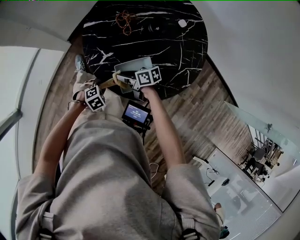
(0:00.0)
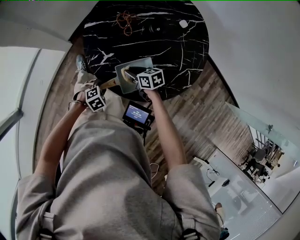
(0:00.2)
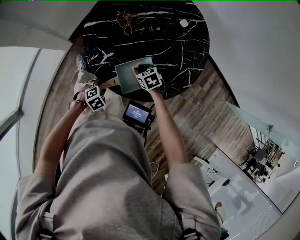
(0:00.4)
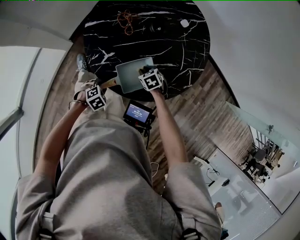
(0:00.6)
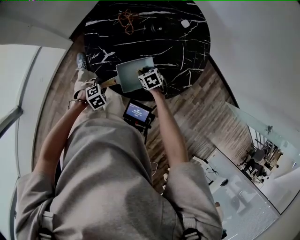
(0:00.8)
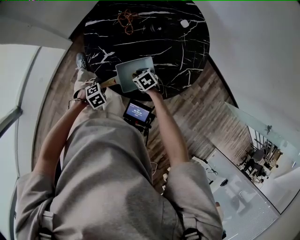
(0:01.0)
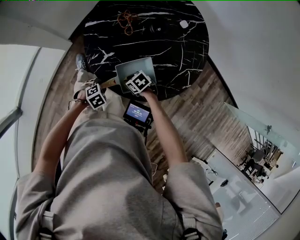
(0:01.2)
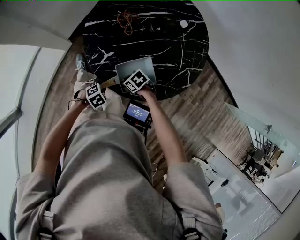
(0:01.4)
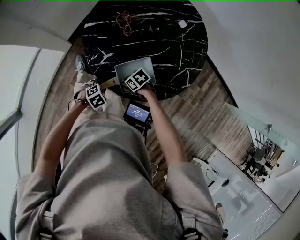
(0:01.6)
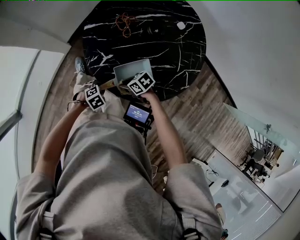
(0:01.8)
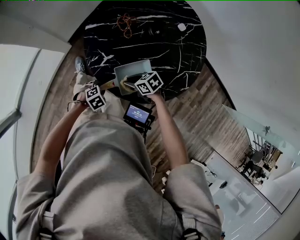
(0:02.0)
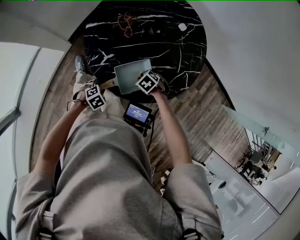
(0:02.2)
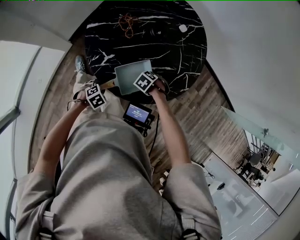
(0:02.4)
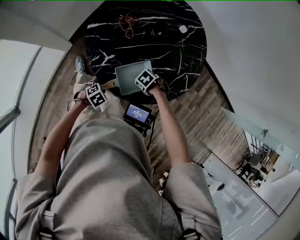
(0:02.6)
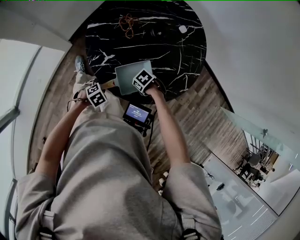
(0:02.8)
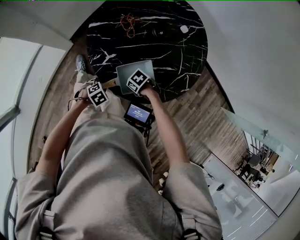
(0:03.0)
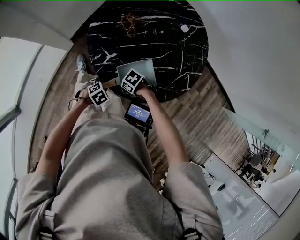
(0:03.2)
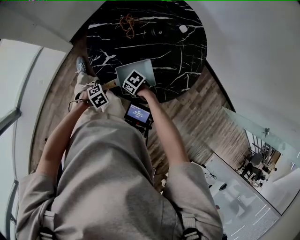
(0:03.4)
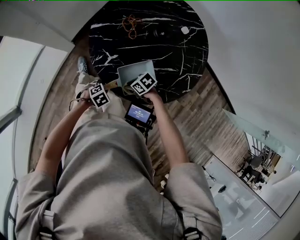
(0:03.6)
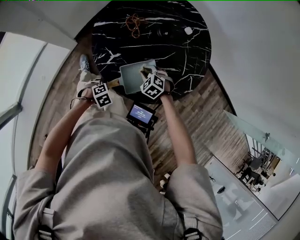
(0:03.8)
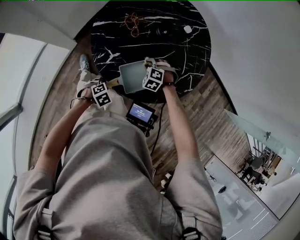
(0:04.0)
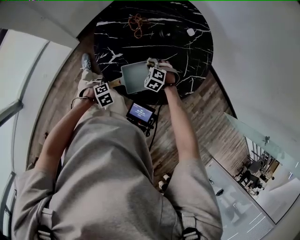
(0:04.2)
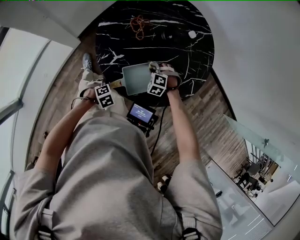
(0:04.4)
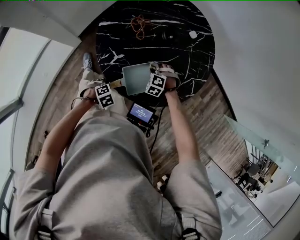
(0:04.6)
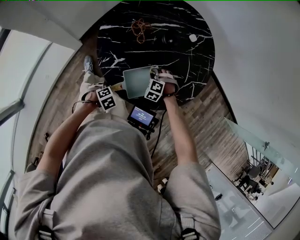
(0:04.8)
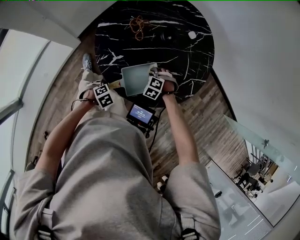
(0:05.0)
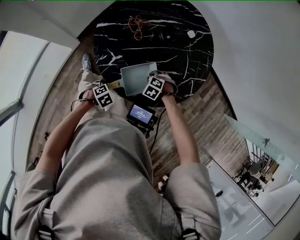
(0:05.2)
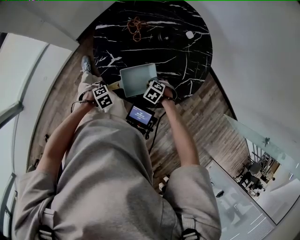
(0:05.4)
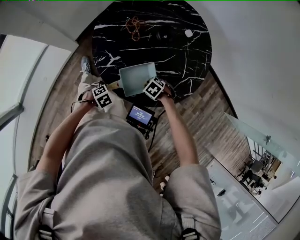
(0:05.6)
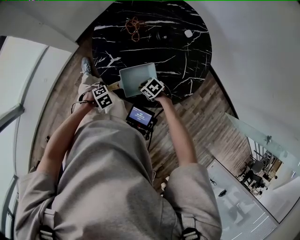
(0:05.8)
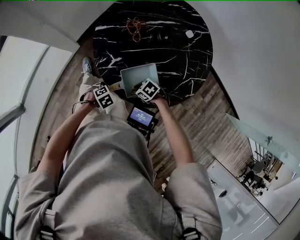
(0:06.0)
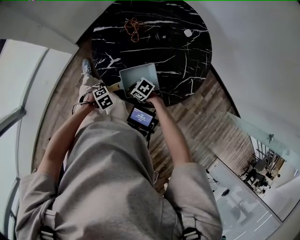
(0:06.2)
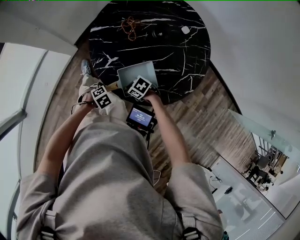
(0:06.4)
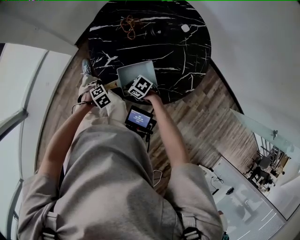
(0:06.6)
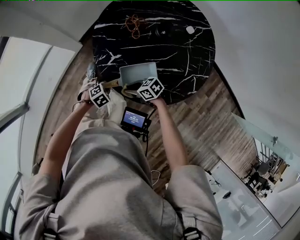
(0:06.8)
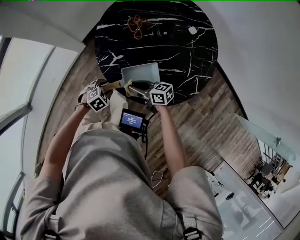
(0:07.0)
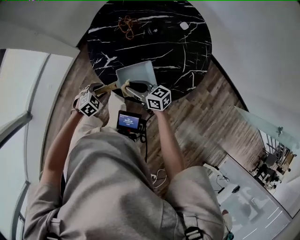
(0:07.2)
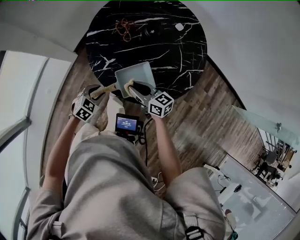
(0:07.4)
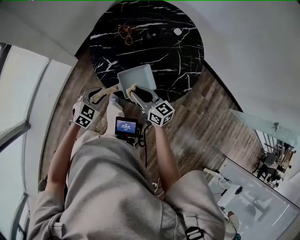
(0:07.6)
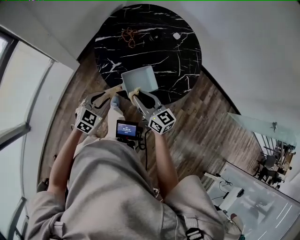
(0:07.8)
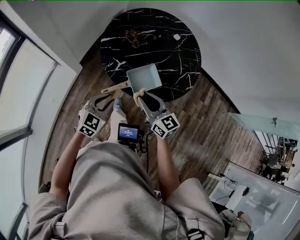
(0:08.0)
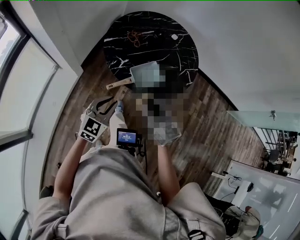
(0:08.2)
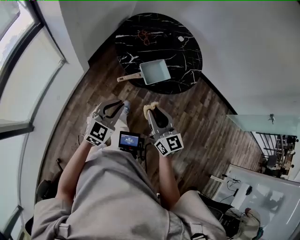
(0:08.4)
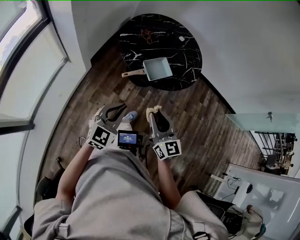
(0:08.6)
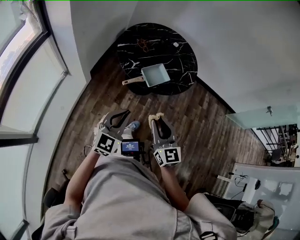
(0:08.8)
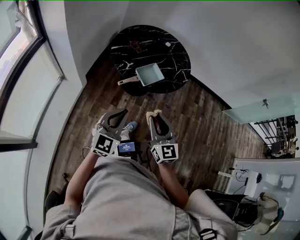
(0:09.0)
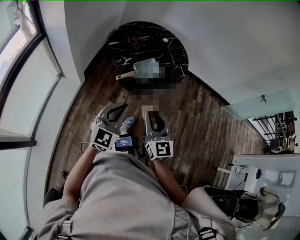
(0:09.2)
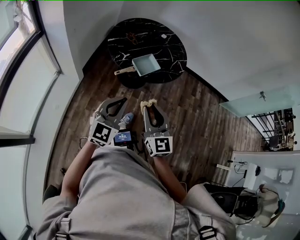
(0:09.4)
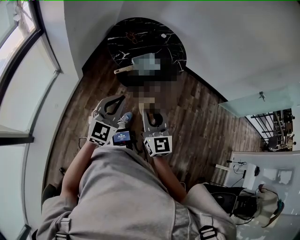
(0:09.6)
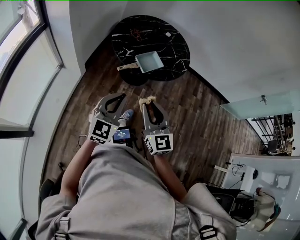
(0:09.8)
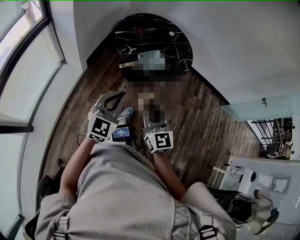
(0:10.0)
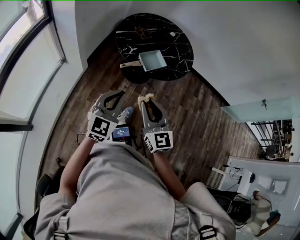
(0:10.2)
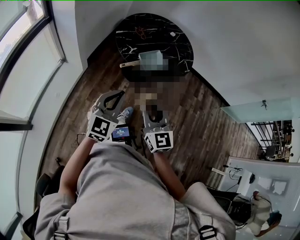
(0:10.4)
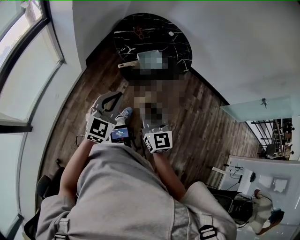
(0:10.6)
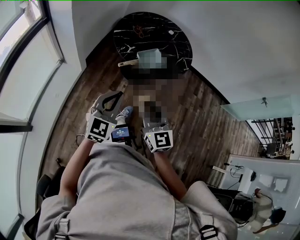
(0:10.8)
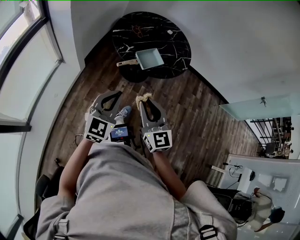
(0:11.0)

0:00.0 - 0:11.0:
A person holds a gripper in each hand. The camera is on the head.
0:00.0 - 0:01.6: The right gripper goes roughly 5 cm downward, and swivels about 40 degrees.
0:03.2 - 0:04.8: The right gripper moves roughly 15 cm, and swivels some 60 degrees.
0:04.8 - 0:06.2: The right gripper shifts by some 15 cm, and turns by about 60 degrees.
0:06.2 - 0:07.8: Both grippers move upward, about 25 cm. The left gripper angles its fingers upward, by some 40 degrees; the right gripper points its fingers roughly 40 degrees further upward.
0:07.8 - 0:09.4: Both grippers travel together backward and upward, about 40 cm. The left gripper tips its fingers upward by about 30 degrees, and closes up; the right gripper swivels approximately 50 degrees.
0:09.4 - 0:11.0: The grippers stay close to where they were, moving slightly.

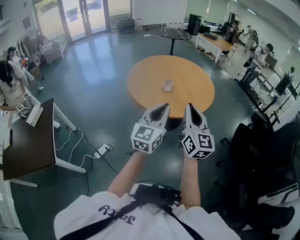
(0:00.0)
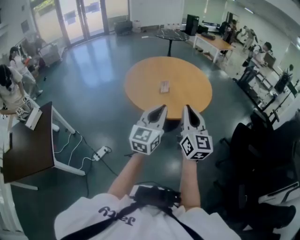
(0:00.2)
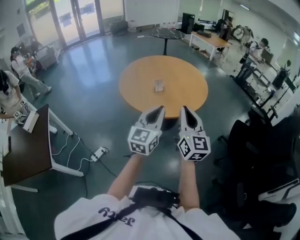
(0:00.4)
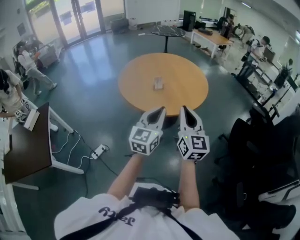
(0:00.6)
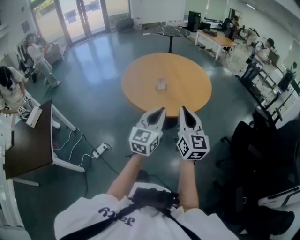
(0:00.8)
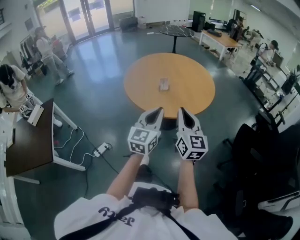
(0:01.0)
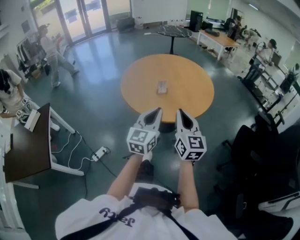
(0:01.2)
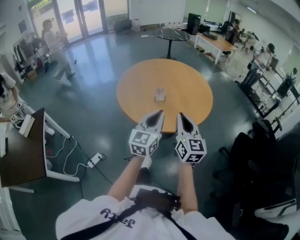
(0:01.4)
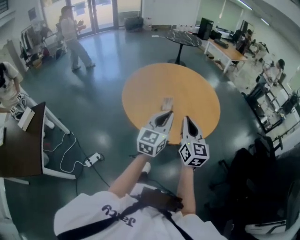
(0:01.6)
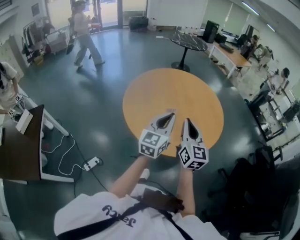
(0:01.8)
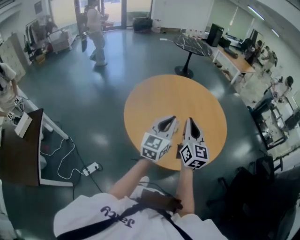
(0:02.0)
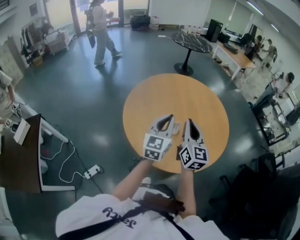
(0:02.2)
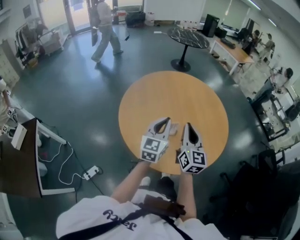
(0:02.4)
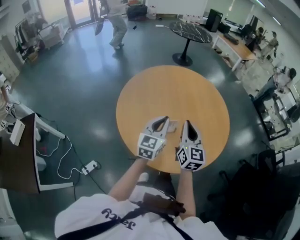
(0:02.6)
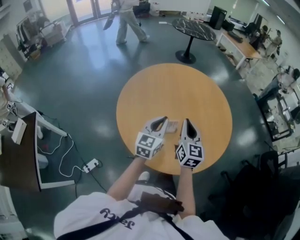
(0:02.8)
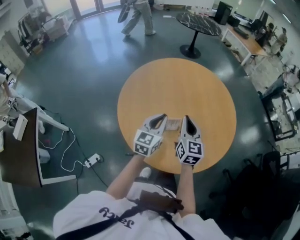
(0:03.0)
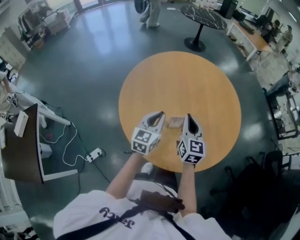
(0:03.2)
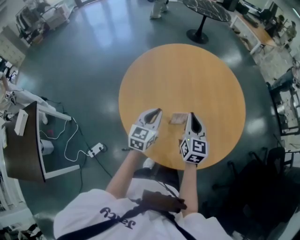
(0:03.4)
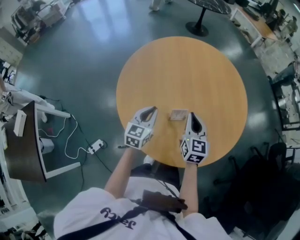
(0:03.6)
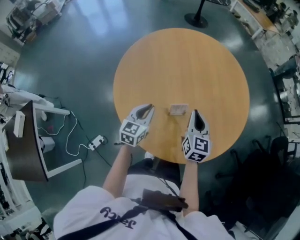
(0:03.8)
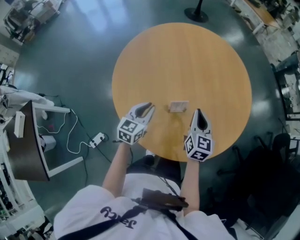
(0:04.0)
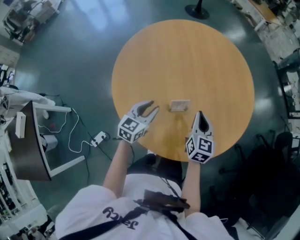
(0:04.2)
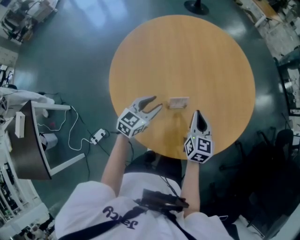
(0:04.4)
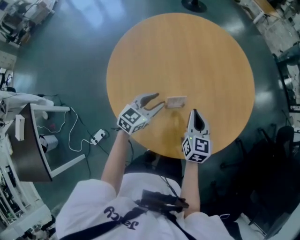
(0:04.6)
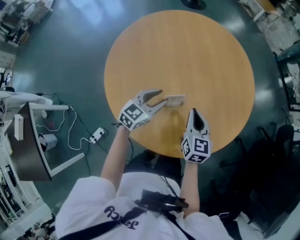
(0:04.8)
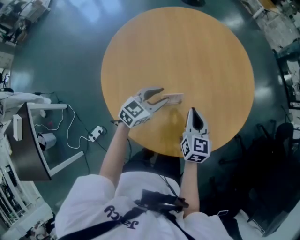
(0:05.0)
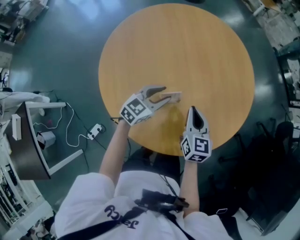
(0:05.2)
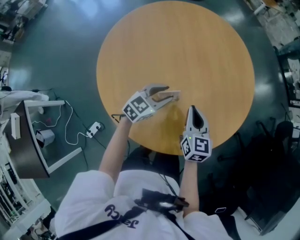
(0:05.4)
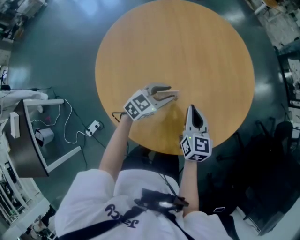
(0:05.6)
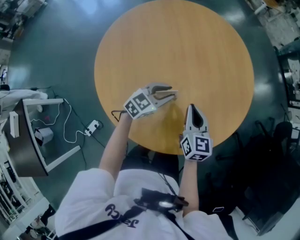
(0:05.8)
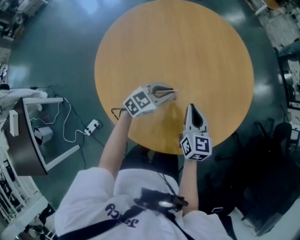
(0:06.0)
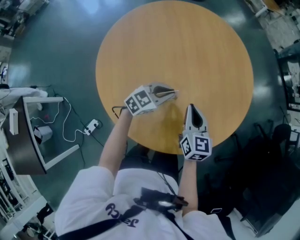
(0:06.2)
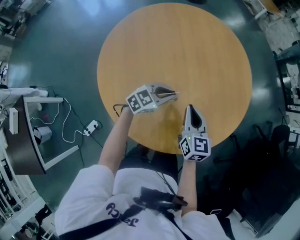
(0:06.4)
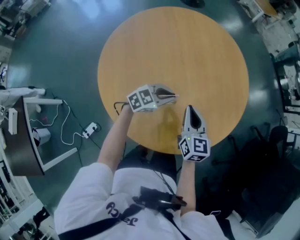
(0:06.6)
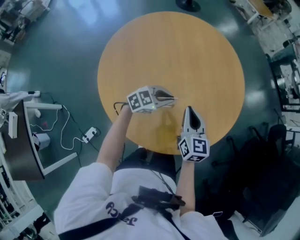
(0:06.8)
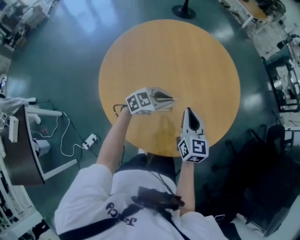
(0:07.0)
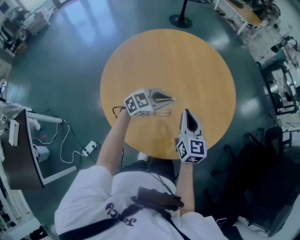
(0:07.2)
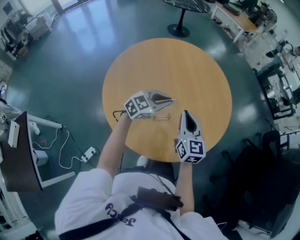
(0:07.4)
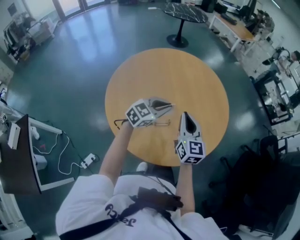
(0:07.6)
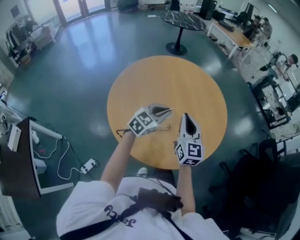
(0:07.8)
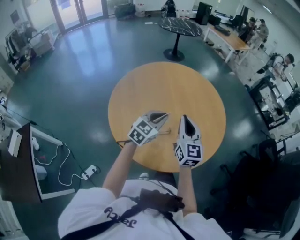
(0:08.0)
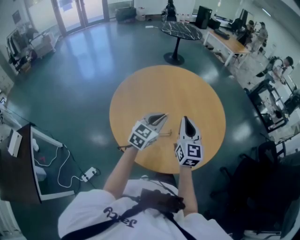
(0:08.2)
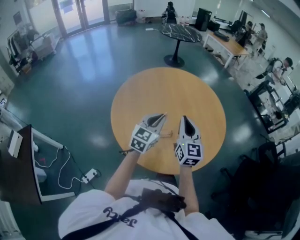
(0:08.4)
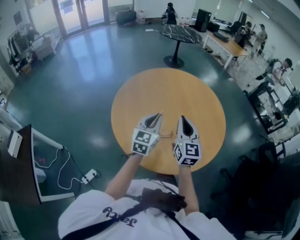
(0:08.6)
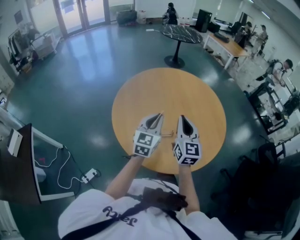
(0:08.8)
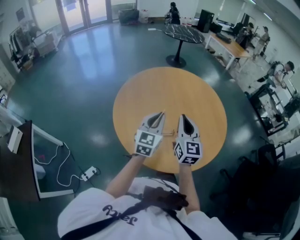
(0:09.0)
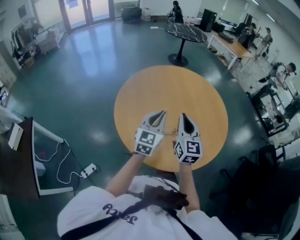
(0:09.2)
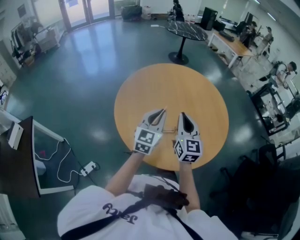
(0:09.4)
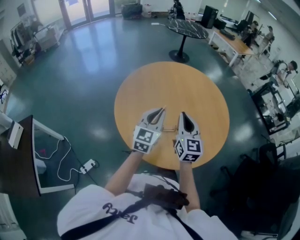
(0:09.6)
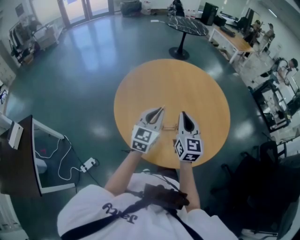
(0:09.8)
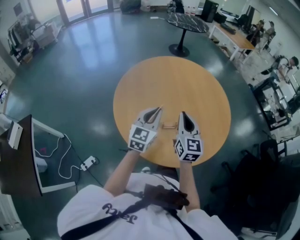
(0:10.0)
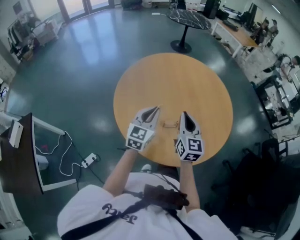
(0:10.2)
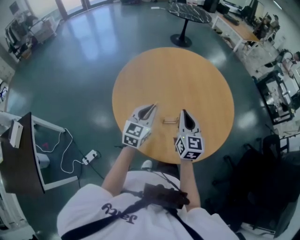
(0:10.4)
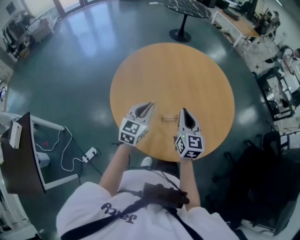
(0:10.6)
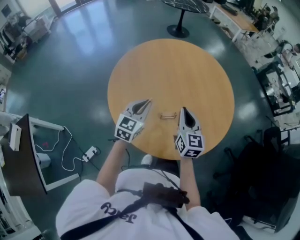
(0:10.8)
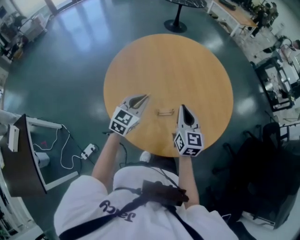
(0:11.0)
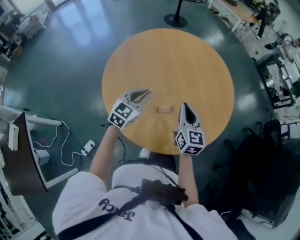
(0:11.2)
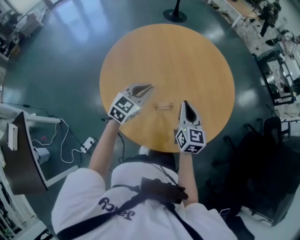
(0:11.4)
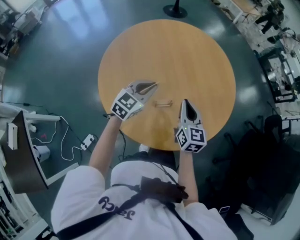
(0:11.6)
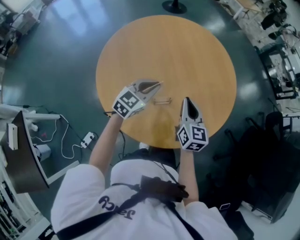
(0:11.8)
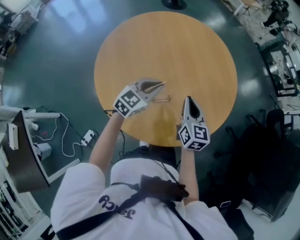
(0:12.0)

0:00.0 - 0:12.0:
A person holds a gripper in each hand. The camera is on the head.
0:00.0 - 0:01.6: The left gripper heads forward, covering some 20 cm, while the right gripper is displaced forward and downward by about 20 cm.
0:01.6 - 0:03.0: The right gripper travels forward by roughly 25 cm. Meanwhile the left gripper heads forward and downward, covering roughly 25 cm.
0:03.0 - 0:04.4: The right gripper is displaced downward and to the right by approximately 15 cm; the left gripper shifts roughly 15 cm downward, rotates approximately 20 degrees, and opens up.
0:04.4 - 0:06.0: The left gripper shifts some 10 cm to the right and forward, swivels roughly 20 degrees, and closes up.
0:06.0 - 0:07.6: Both grippers move upward, approximately 15 cm.
0:07.6 - 0:09.0: The left gripper shifts about 10 cm to the left, upward and backward, and rotates roughly 40 degrees. The right gripper shifts by some 5 cm.
0:09.0 - 0:10.4: The grippers both shift downward by roughly 5 cm.
0:10.4 - 0:12.0: The right gripper heads to the right and downward, covering some 10 cm. Meanwhile the left gripper goes approximately 10 cm to the right and forward, and changes its angle by approximately 30 degrees.

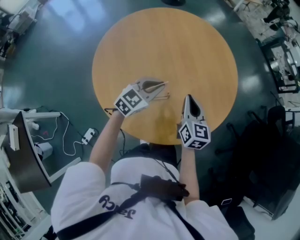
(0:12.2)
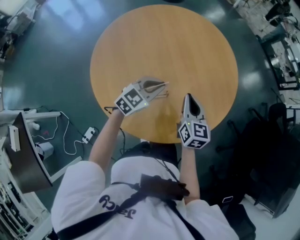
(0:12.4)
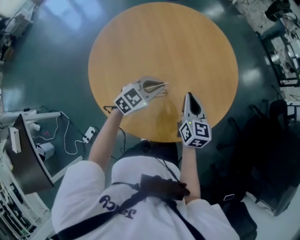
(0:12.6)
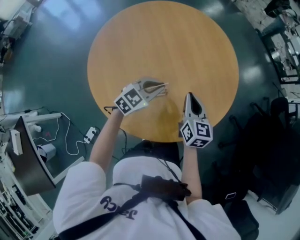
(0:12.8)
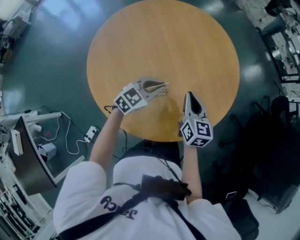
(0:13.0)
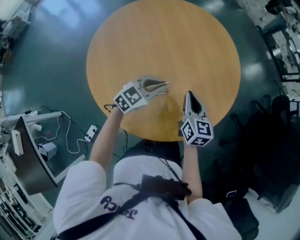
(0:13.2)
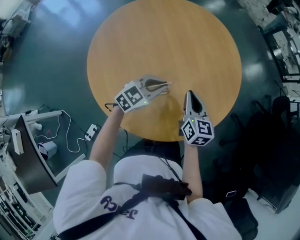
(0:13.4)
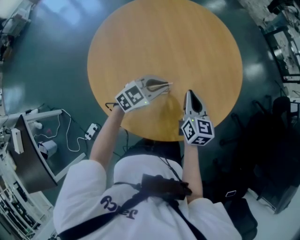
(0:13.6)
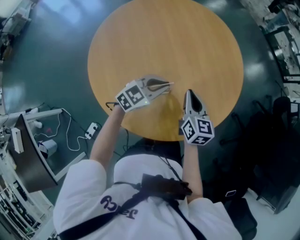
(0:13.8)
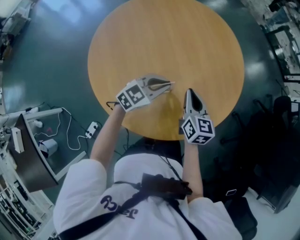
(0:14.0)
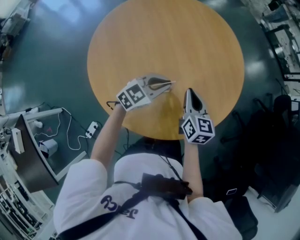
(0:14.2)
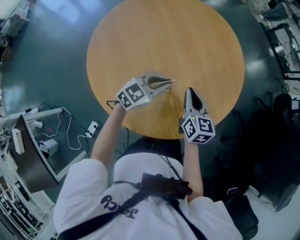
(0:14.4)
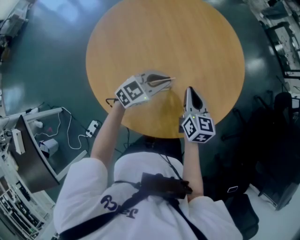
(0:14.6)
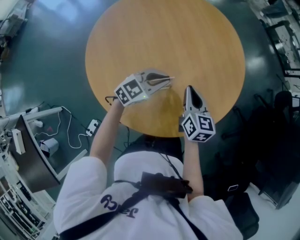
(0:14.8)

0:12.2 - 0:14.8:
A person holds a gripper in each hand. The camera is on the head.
0:12.2 - 0:14.8: There are only small adjustments of the grippers.
